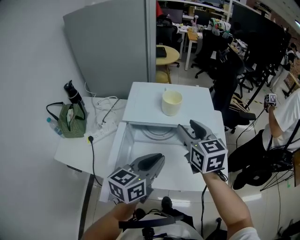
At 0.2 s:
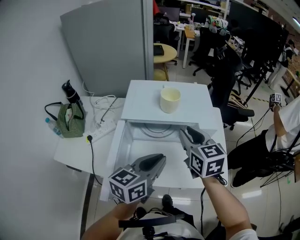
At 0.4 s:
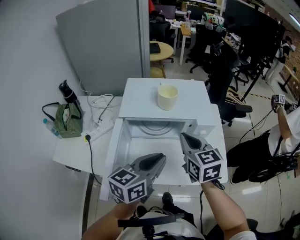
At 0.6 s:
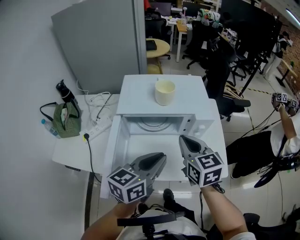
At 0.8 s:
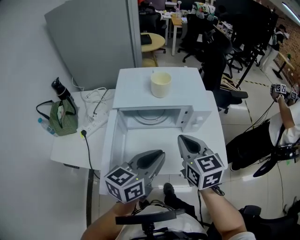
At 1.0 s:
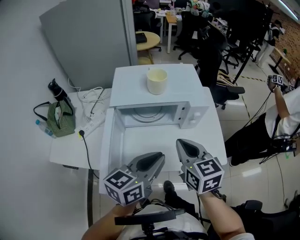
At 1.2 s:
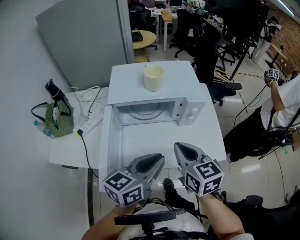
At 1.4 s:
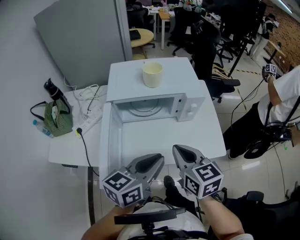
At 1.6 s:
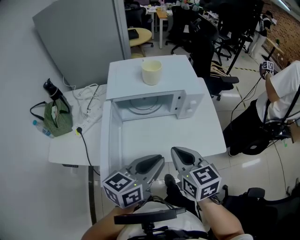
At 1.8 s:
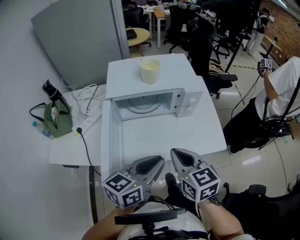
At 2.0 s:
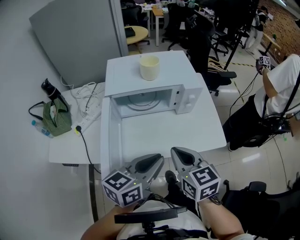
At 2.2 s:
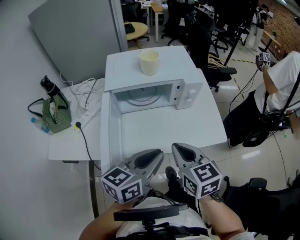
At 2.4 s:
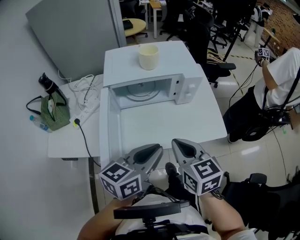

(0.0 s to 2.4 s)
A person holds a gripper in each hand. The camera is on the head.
0.0 s - 1.2 s: The left gripper shifts about 10 cm backward; the right gripper heads backward and downward, covering roughly 20 cm, and closes up.
1.2 s - 2.4 s: Both grippers move backward, some 5 cm.

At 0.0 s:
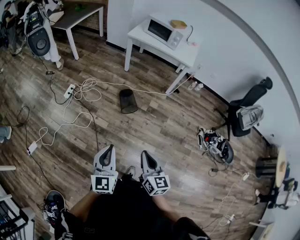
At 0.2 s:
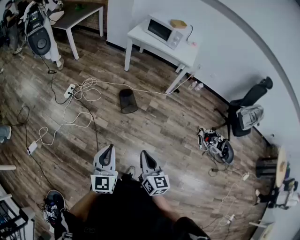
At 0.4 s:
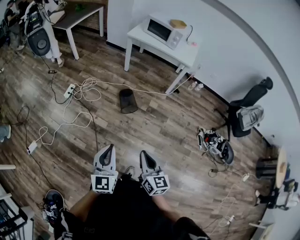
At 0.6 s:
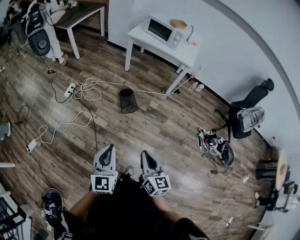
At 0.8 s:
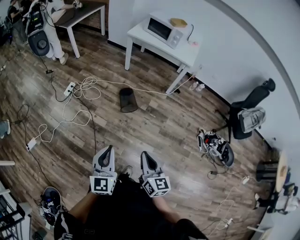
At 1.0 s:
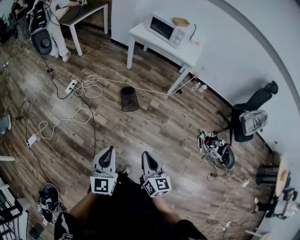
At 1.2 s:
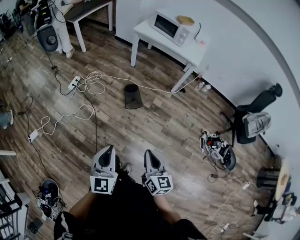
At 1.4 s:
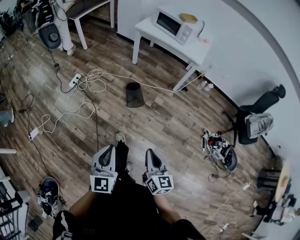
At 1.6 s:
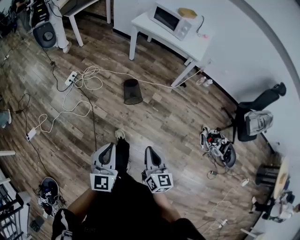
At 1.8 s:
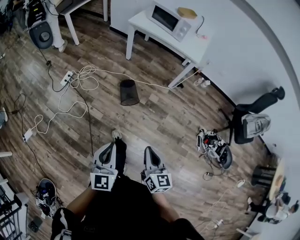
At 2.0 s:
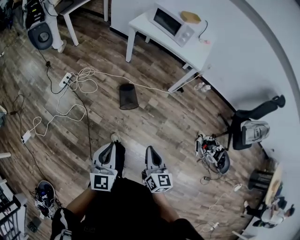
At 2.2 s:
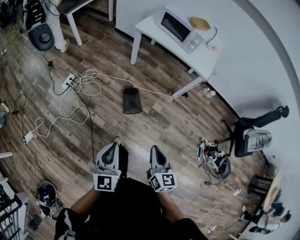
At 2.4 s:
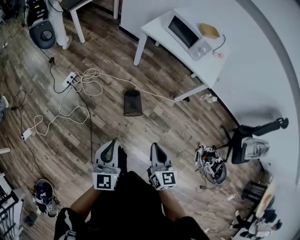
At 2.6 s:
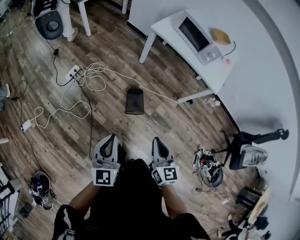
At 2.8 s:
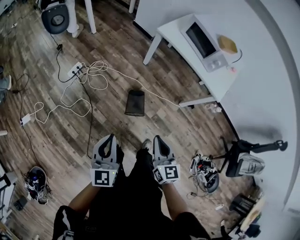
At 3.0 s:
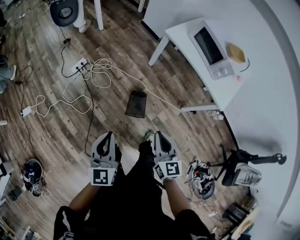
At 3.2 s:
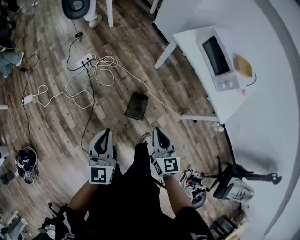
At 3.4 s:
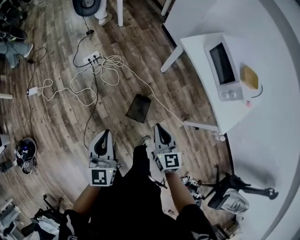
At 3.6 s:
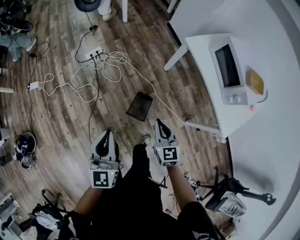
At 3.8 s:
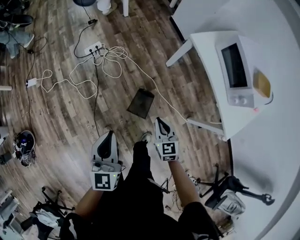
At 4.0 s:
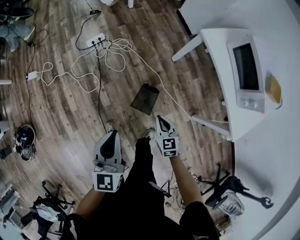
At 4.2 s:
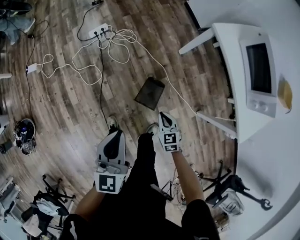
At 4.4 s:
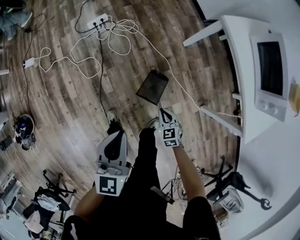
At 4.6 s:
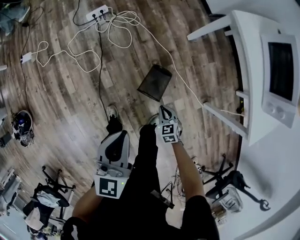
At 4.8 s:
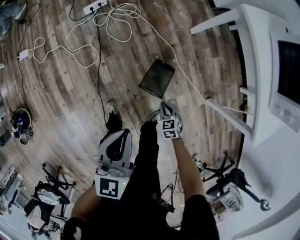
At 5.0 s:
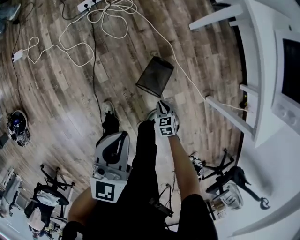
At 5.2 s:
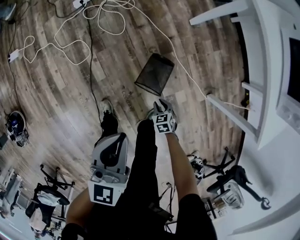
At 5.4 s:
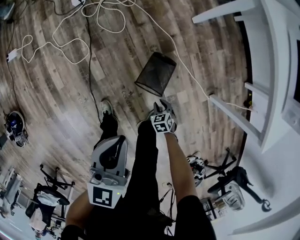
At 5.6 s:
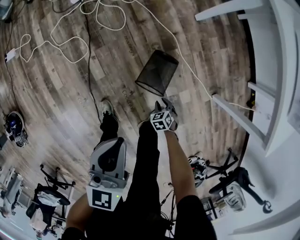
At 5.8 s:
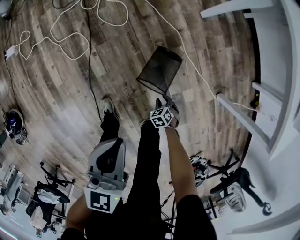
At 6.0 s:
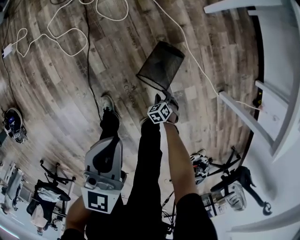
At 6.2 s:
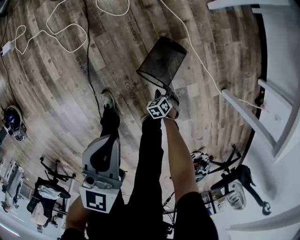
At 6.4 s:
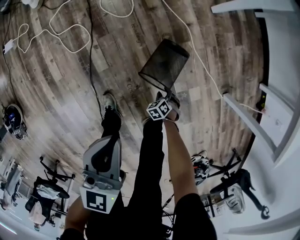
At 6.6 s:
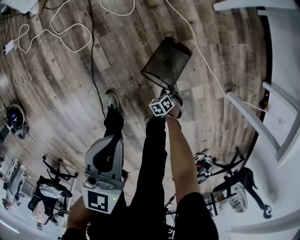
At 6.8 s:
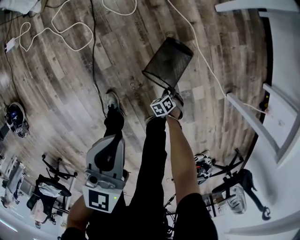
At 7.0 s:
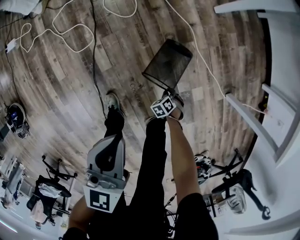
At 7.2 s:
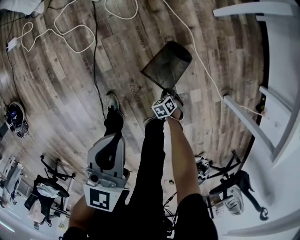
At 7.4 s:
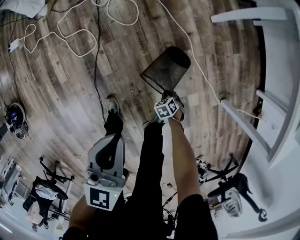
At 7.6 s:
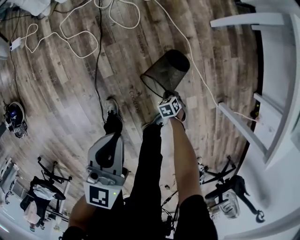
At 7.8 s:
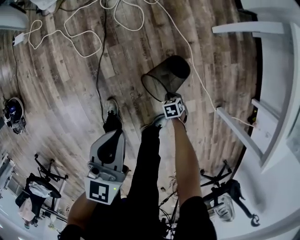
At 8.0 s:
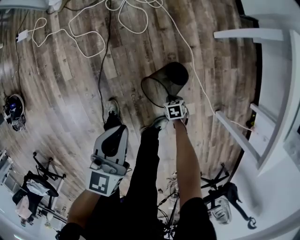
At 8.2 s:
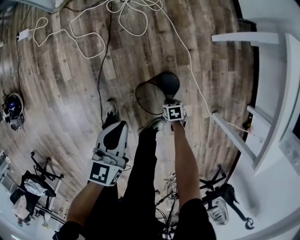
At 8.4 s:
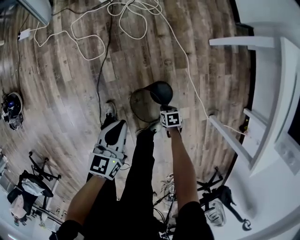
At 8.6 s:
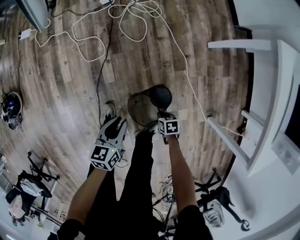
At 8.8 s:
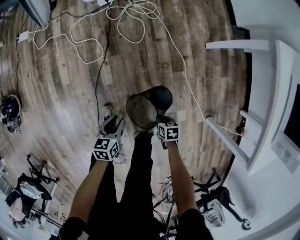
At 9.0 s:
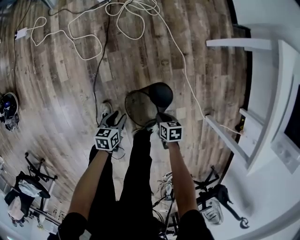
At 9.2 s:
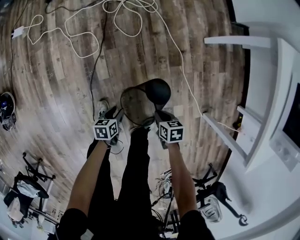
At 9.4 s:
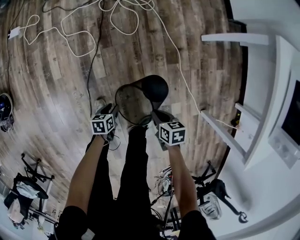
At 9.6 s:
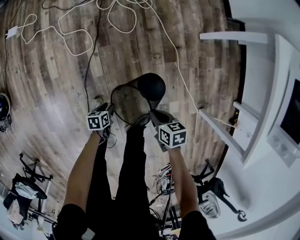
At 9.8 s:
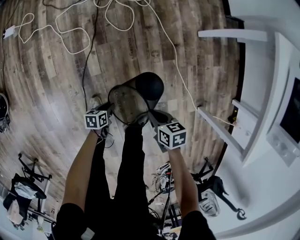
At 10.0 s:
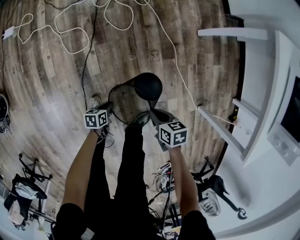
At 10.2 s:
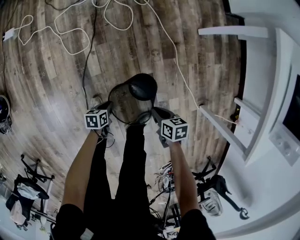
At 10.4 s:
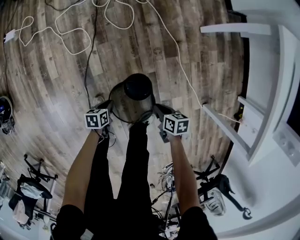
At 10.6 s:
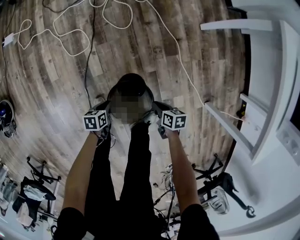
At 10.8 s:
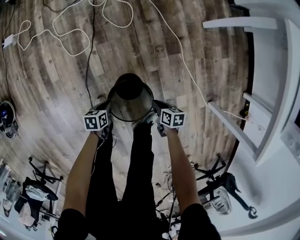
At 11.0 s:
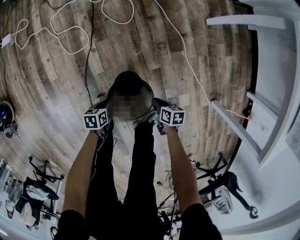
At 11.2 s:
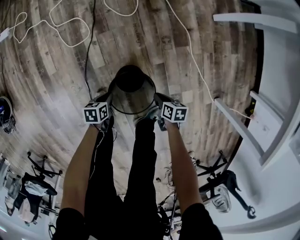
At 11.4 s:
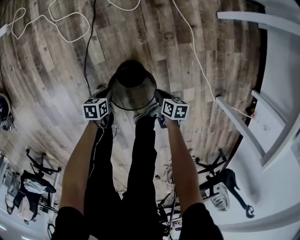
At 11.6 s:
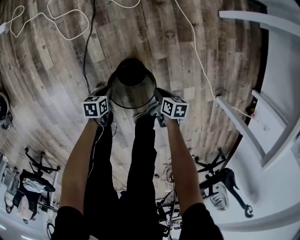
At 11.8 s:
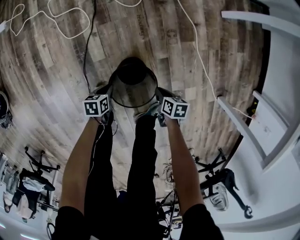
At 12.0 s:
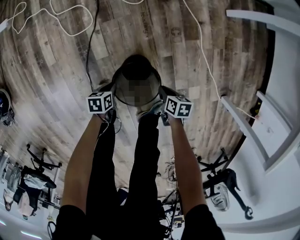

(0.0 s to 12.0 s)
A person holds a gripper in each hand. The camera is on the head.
0.0 s - 1.6 s: The left gripper travels to the right by roughly 10 cm. Meanwhile the right gripper goes roughly 10 cm to the right and forward.
1.6 s - 3.0 s: Both grippers travel together forward, approximately 35 cm. The left gripper changes its angle by approximately 20 degrees, while the right gripper swivels approximately 30 degrees.
3.0 s - 4.4 s: The right gripper moves downward, approximately 40 cm, and changes its angle by some 50 degrees, while the left gripper is displaced downward, forward and to the right by roughly 15 cm.
4.4 s - 6.0 s: The right gripper moves downward, about 40 cm, tips its fingers downward by approximately 30 degrees, and opens, while the left gripper heads downward, covering about 20 cm.
6.0 s - 7.6 s: The right gripper changes place by roughly 5 cm, and closes its fingers.
7.6 s - 9.0 s: The left gripper goes some 25 cm downward, tilts its fingers some 30 degrees downward, and opens; the right gripper goes roughly 15 cm upward, and changes its angle by about 30 degrees.
9.0 s - 10.4 s: The left gripper heads downward, covering some 10 cm, and closes its fingers. Meanwhile the right gripper travels upward and back again, some 10 cm each way.
10.4 s - 12.0 s: The two grippers go approximately 15 cm downward.

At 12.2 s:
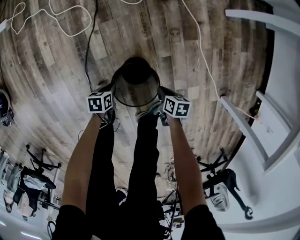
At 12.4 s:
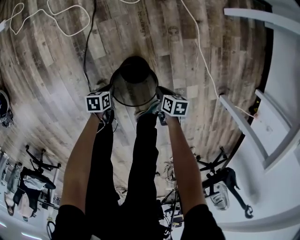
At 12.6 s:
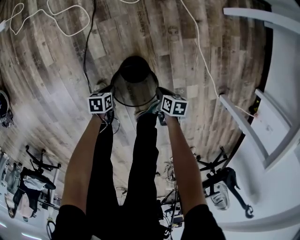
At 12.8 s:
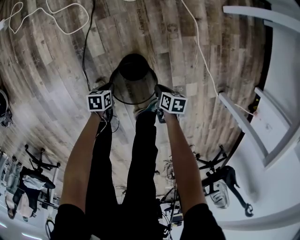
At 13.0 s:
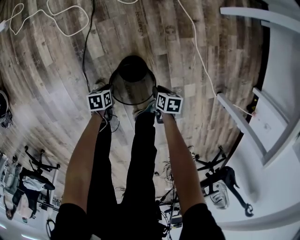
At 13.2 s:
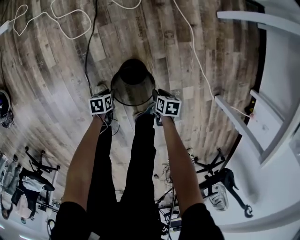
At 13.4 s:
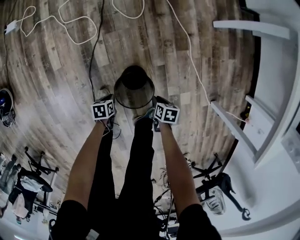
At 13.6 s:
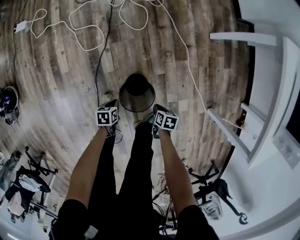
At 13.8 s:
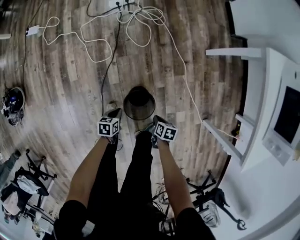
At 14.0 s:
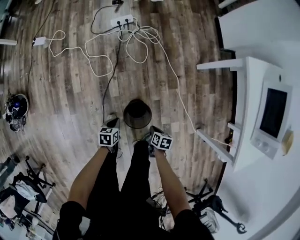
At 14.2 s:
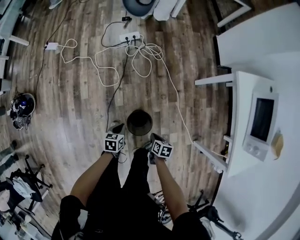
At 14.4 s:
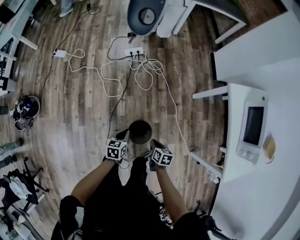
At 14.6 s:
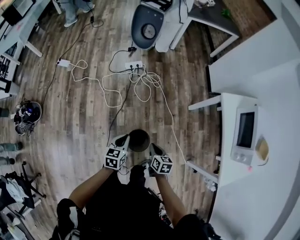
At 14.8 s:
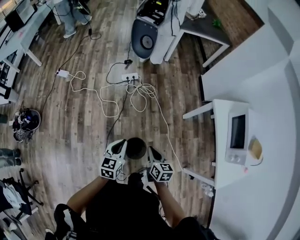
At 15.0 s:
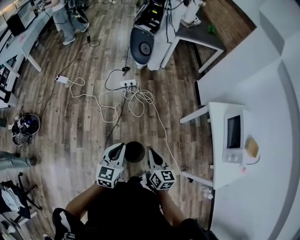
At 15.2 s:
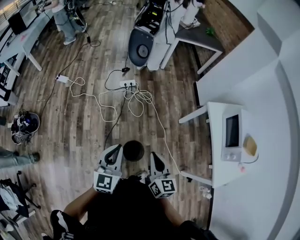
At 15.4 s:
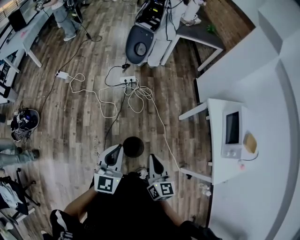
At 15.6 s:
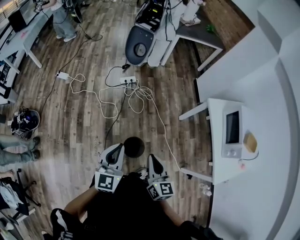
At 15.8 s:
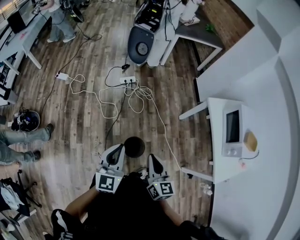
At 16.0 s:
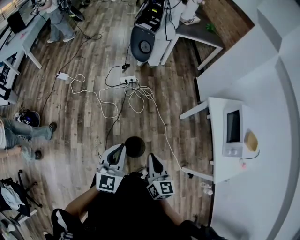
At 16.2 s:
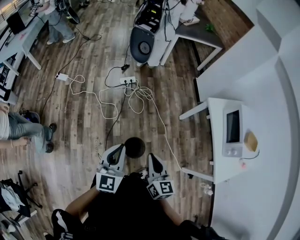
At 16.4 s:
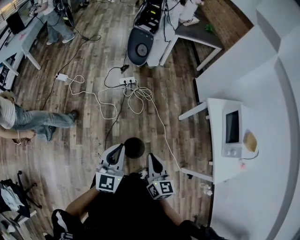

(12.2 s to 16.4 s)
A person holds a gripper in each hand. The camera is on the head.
12.2 s - 13.6 s: Both grippers travel together upward, roughly 10 cm.
13.6 s - 15.0 s: Both grippers travel together upward, approximately 60 cm. The left gripper angles its fingers upward, by about 50 degrees, while the right gripper points its fingers roughly 50 degrees further upward.
15.0 s - 16.4 s: The left gripper heads upward, covering some 5 cm, while the right gripper shifts approximately 10 cm upward and backward.

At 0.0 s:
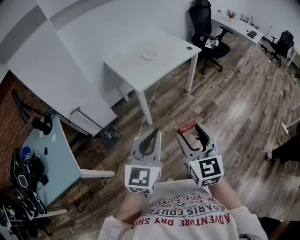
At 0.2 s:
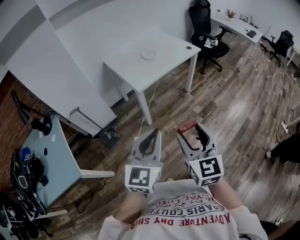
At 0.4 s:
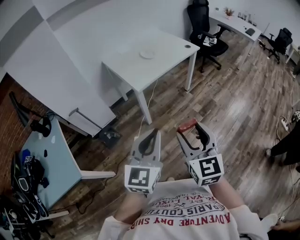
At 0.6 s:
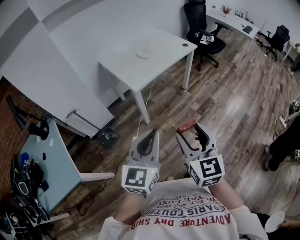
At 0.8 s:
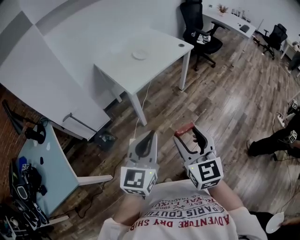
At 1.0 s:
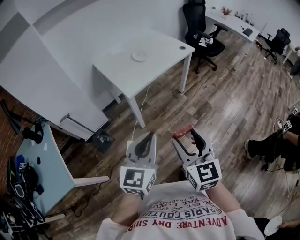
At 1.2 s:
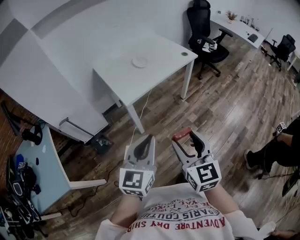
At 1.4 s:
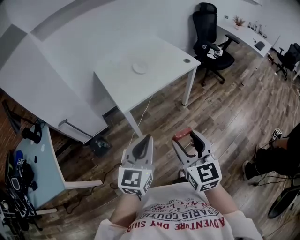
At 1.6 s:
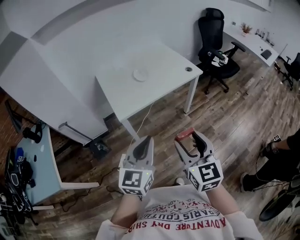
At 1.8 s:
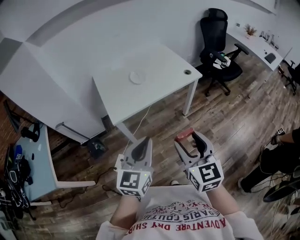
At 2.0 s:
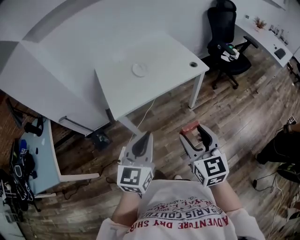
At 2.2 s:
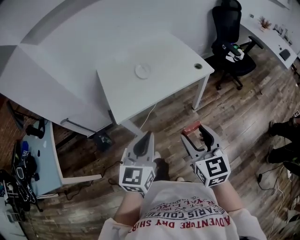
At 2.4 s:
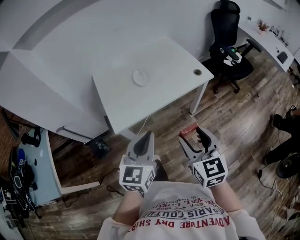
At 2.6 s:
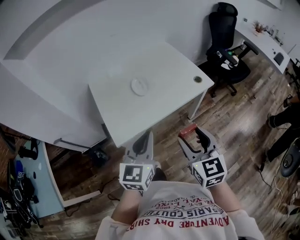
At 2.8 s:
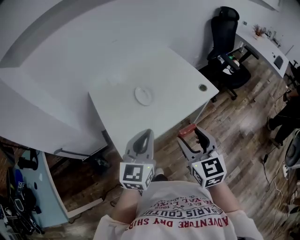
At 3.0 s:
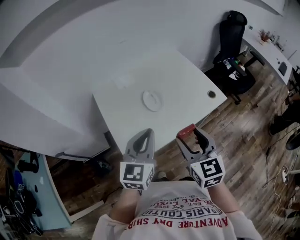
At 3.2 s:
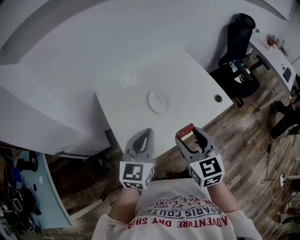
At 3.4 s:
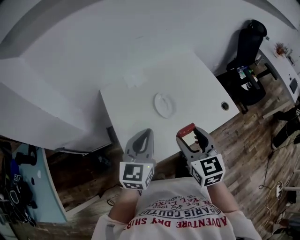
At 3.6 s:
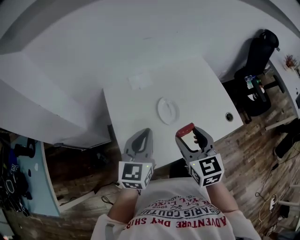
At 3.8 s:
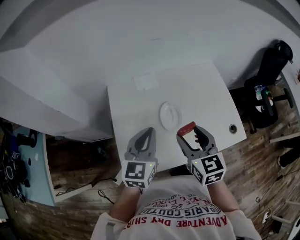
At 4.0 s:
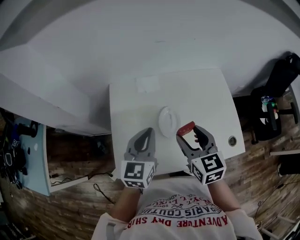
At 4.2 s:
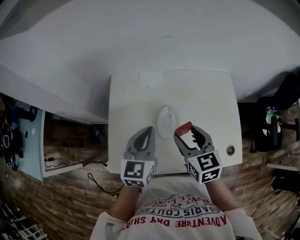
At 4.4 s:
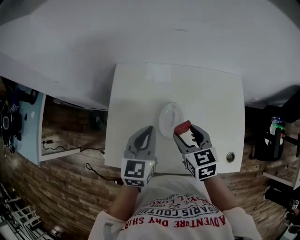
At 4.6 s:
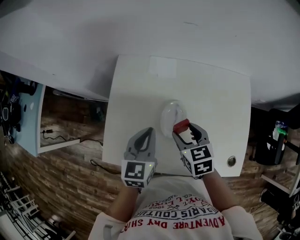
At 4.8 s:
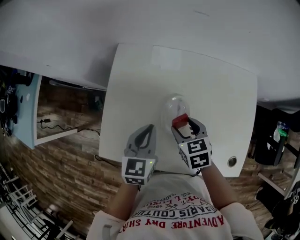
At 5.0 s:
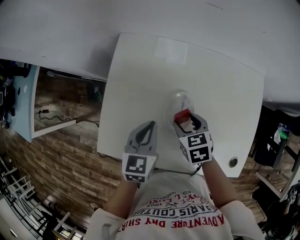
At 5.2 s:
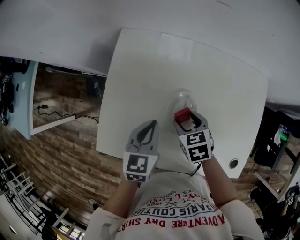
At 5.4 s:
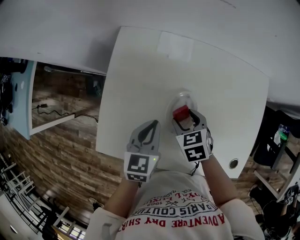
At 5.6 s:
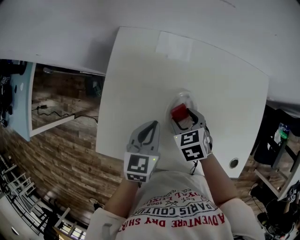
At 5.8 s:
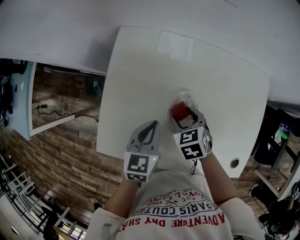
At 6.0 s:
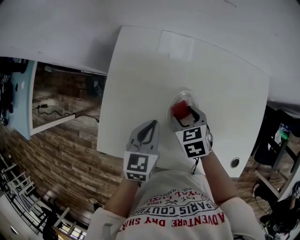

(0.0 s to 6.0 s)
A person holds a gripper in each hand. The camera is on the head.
0.0 s - 1.6 s: The grippers both shift forward and to the right by about 25 cm.
1.6 s - 3.0 s: The grippers both shift forward by about 35 cm.
3.0 s - 4.4 s: The left gripper moves approximately 25 cm, and rotates approximately 40 degrees; the right gripper shifts by about 30 cm, and swivels roughly 40 degrees.
4.4 s - 6.0 s: Both grippers move downward, roughly 15 cm. The right gripper turns by some 20 degrees.
